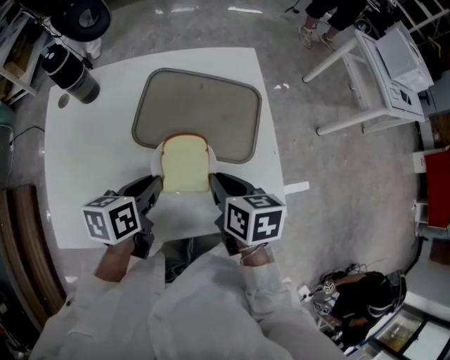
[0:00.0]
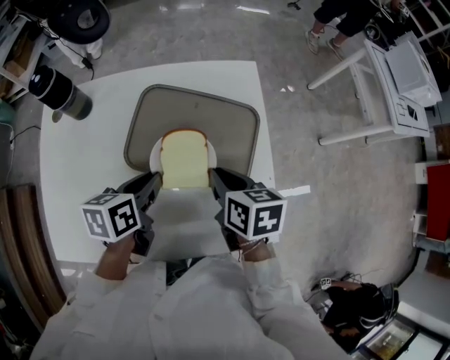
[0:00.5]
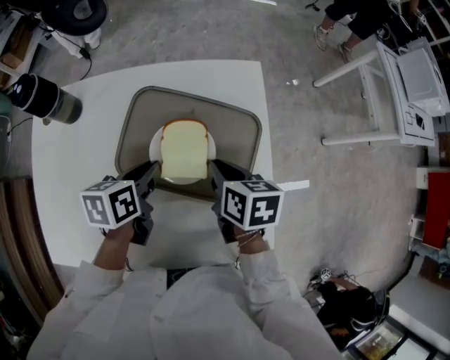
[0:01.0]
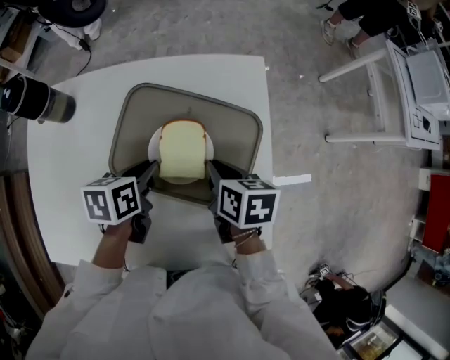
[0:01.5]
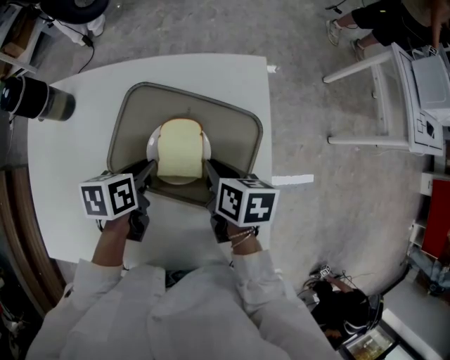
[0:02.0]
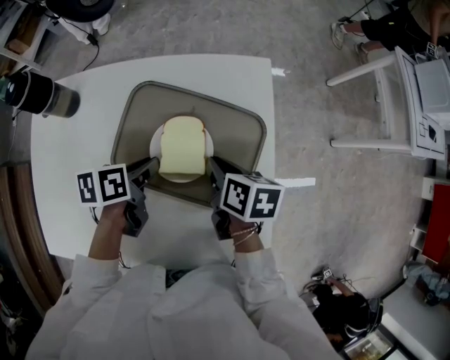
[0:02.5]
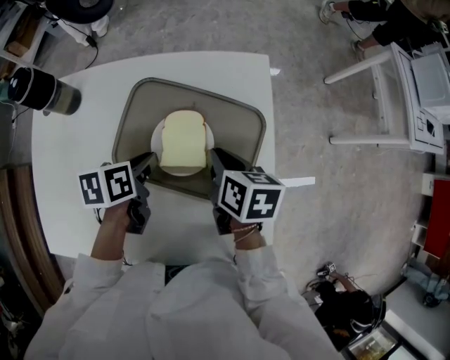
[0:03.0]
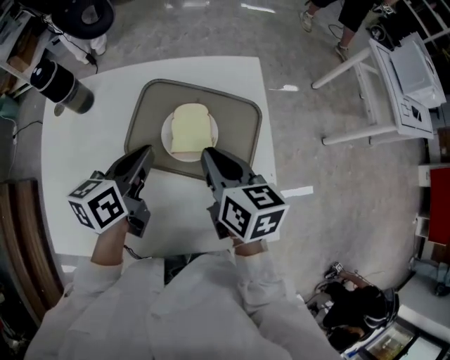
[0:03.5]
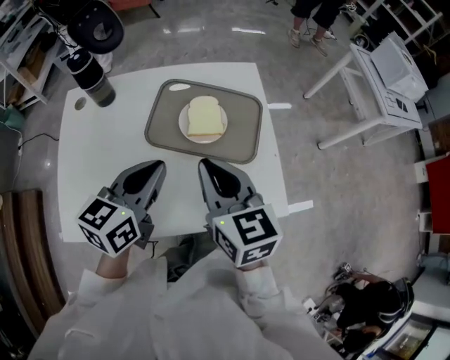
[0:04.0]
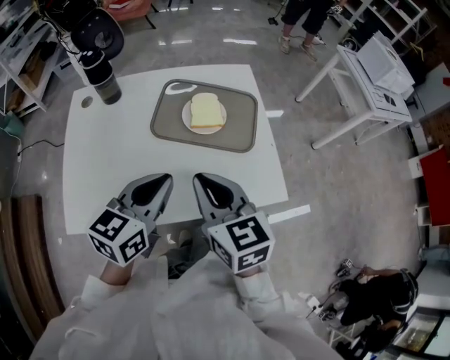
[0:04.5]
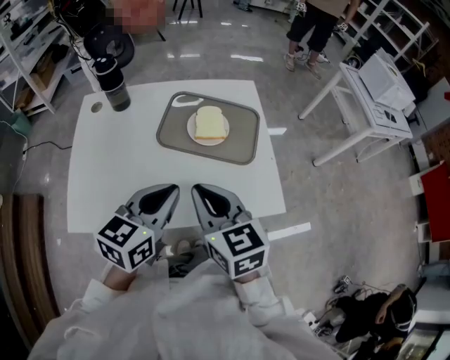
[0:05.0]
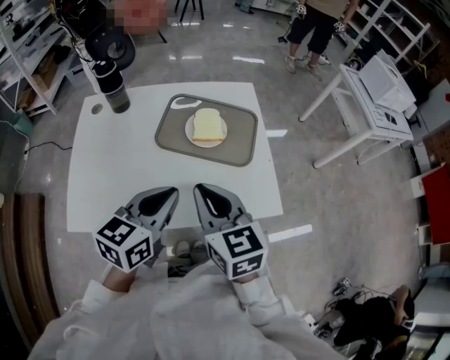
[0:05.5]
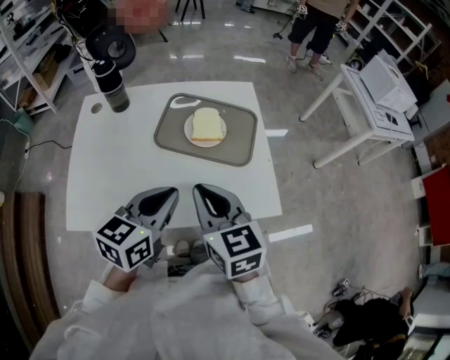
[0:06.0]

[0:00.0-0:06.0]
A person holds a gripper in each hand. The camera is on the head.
0:00.0 to 0:02.0: The grippers both shift forward and downward by roughly 20 cm.
0:02.0 to 0:04.0: The left gripper heads upward and backward, covering about 30 cm, and points its fingers approximately 30 degrees further upward; the right gripper moves upward, backward and to the left, some 30 cm, and swivels roughly 50 degrees.
0:04.0 to 0:06.0: The grippers both shift backward by roughly 10 cm.

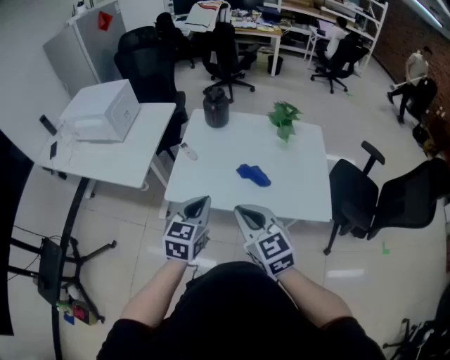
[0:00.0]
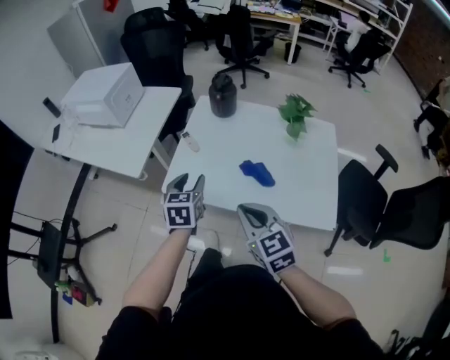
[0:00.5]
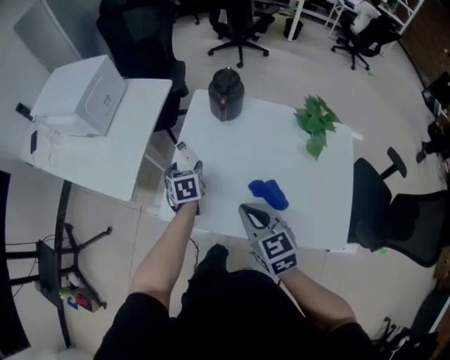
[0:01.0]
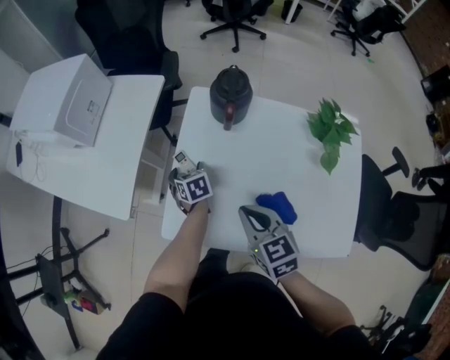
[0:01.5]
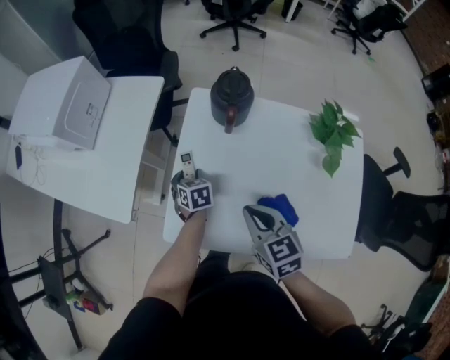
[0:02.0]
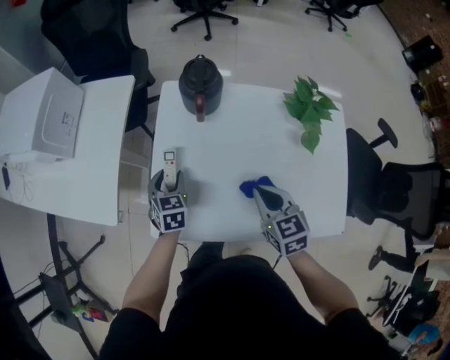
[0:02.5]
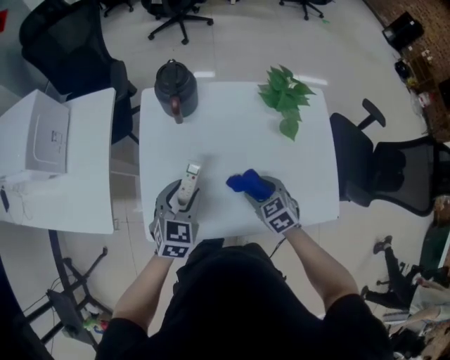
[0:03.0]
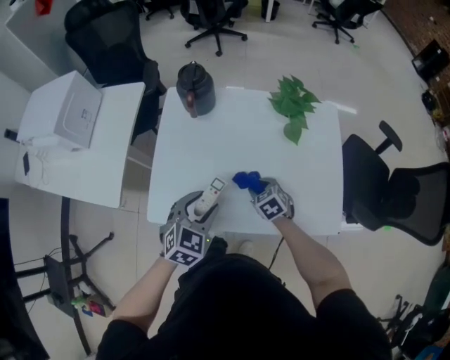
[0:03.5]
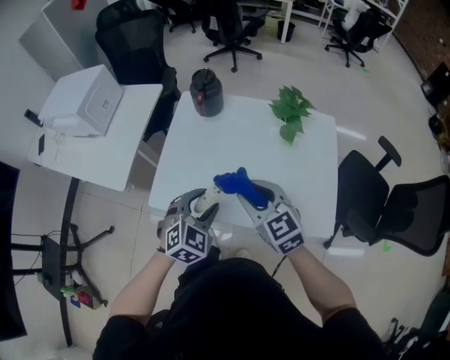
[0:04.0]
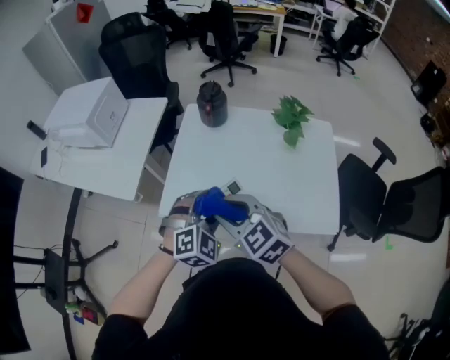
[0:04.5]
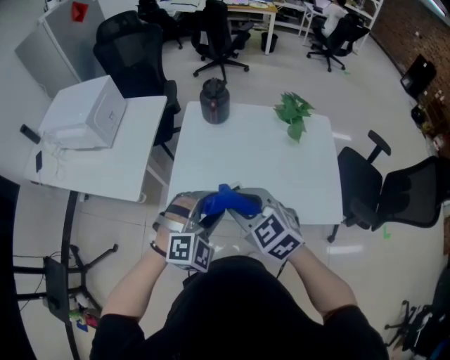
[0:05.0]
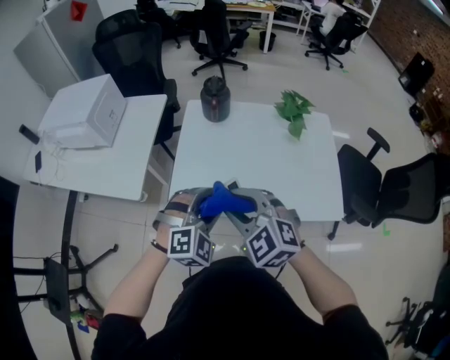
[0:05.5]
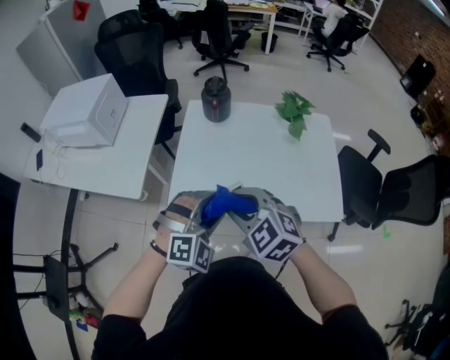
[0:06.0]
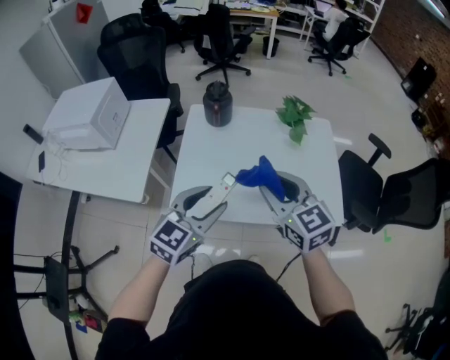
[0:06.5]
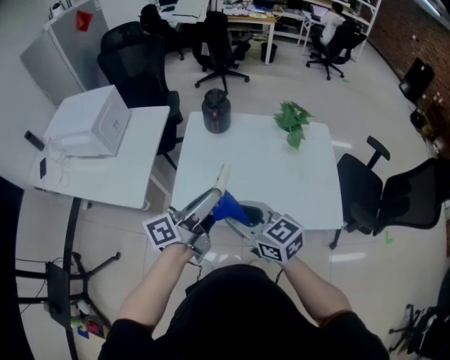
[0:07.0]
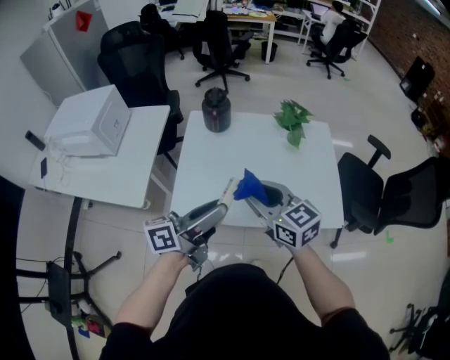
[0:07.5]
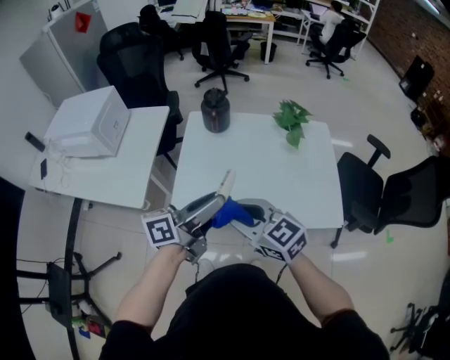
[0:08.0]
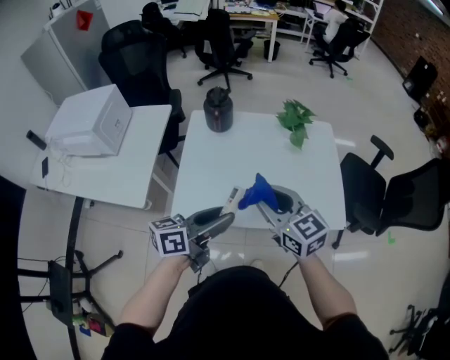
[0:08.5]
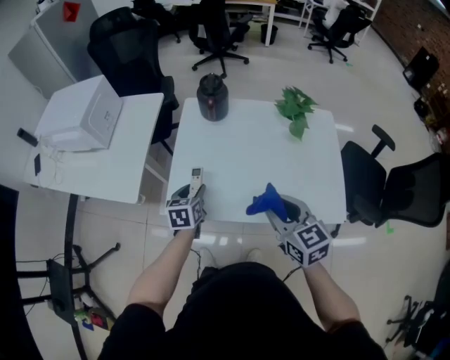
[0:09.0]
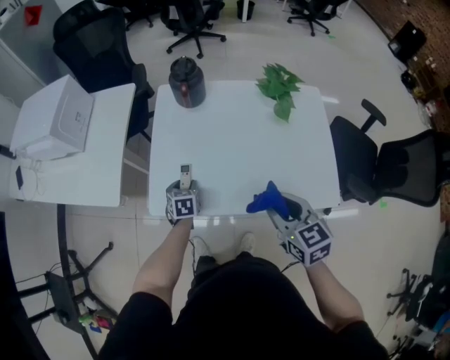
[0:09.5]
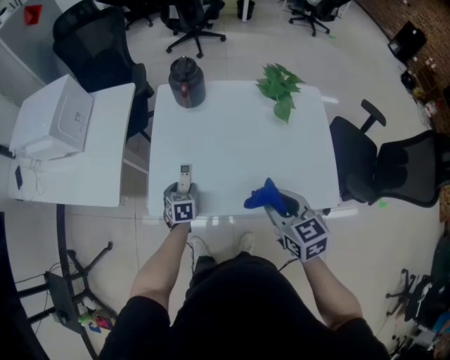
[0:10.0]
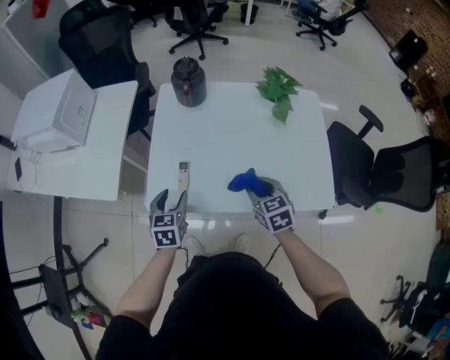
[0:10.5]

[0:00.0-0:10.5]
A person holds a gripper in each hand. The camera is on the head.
0:00.0 to 0:02.0: The left gripper is displaced forward and downward by approximately 50 cm, tips its fingers downward by roughly 30 degrees, and opens its fingers. Meanwhile the right gripper shifts some 30 cm forward and downward, and changes its angle by approximately 20 degrees.
0:02.0 to 0:04.0: The right gripper travels downward and back again, about 15 cm each way, and opens; the left gripper ends up approximately 40 cm from where it was, and twists approximately 50 degrees clockwise, seen from behind.
0:04.0 to 0:06.5: The right gripper is displaced upward by about 10 cm, and goes to the left and returns, approximately 15 cm each way, while the left gripper is displaced upward and to the left by approximately 15 cm, and turns by some 30 degrees.
0:06.5 to 0:08.5: The left gripper rolls counterclockwise, seen from behind, by some 50 degrees, while the right gripper goes left and right, about 10 cm each way, reversing 3 times.
0:08.5 to 0:10.5: The left gripper travels downward, to the left and forward by some 25 cm, and angles its fingers downward, by approximately 40 degrees; the right gripper moves downward, roughly 20 cm, and changes its angle by some 30 degrees.

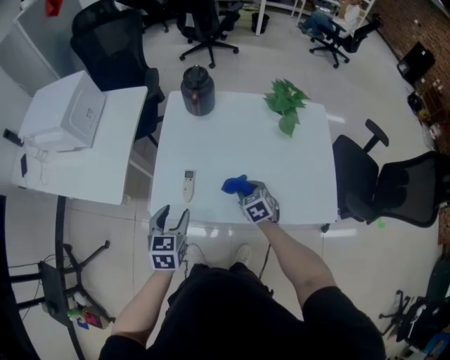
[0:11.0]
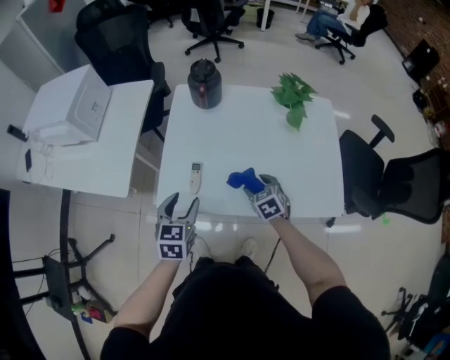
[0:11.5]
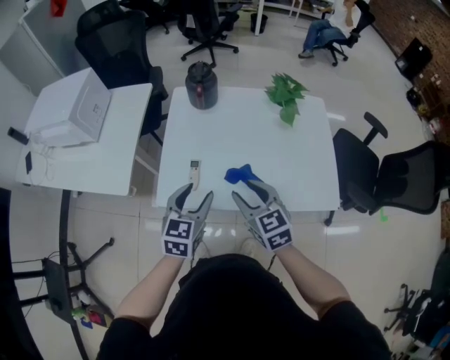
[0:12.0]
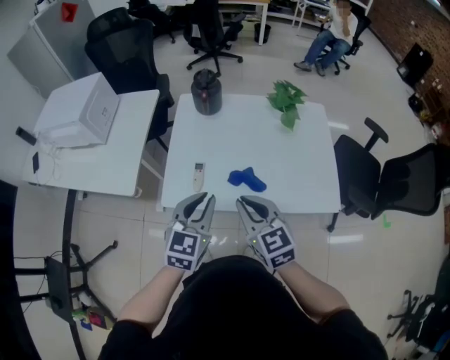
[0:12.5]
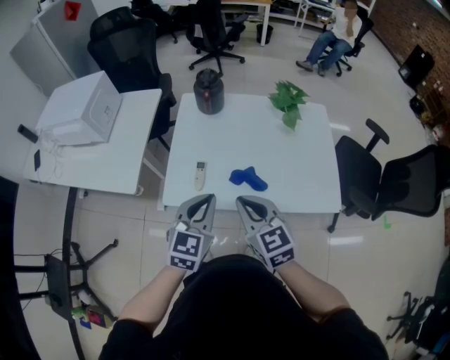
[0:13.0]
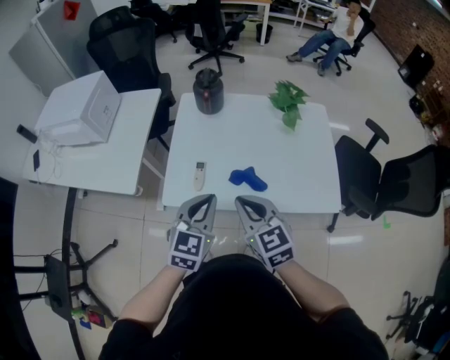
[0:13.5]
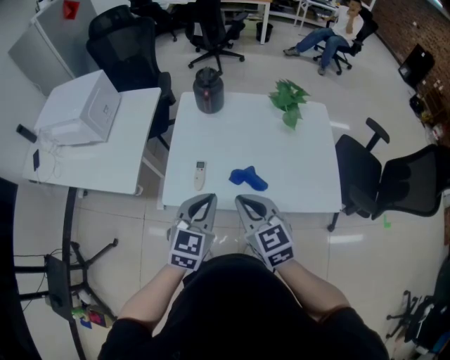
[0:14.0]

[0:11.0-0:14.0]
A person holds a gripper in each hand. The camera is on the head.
0:11.0 to 0:12.5: The right gripper heads upward and backward, covering approximately 30 cm, turns by some 30 degrees, and closes its fingers. The left gripper is displaced upward and to the right by approximately 15 cm, turns by approximately 20 degrees, and closes.
0:12.5 to 0:14.0: The two grippers keep their place.

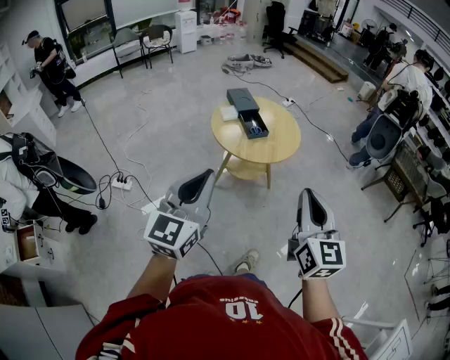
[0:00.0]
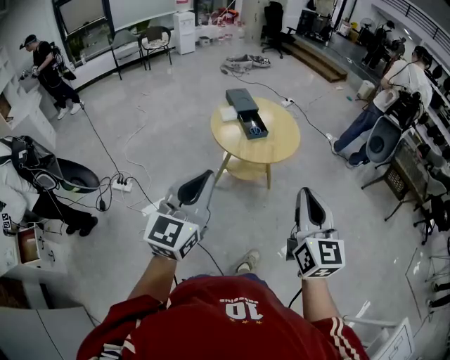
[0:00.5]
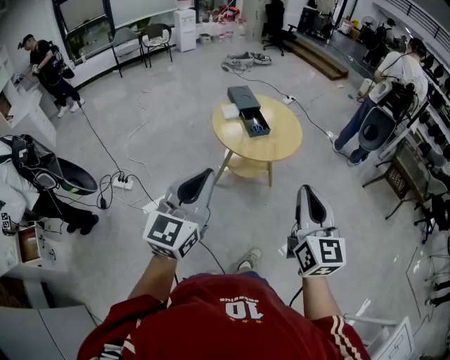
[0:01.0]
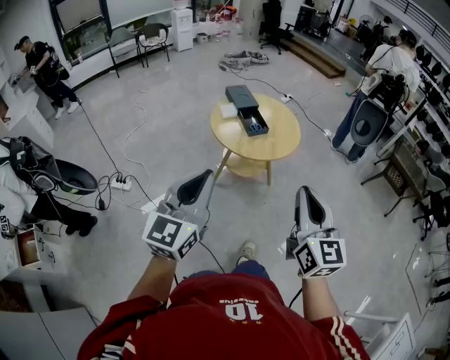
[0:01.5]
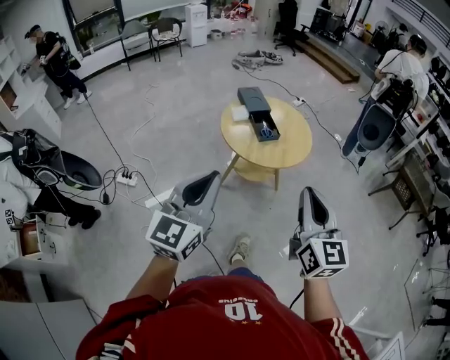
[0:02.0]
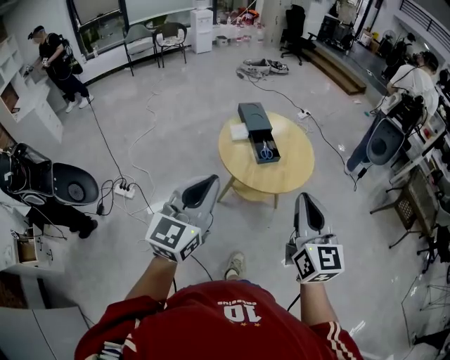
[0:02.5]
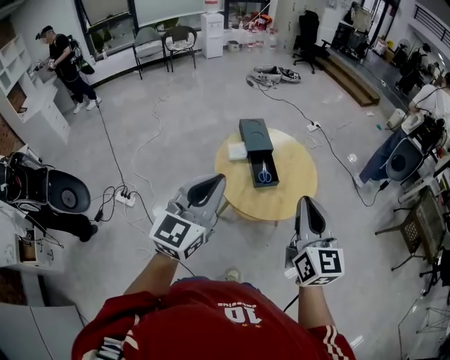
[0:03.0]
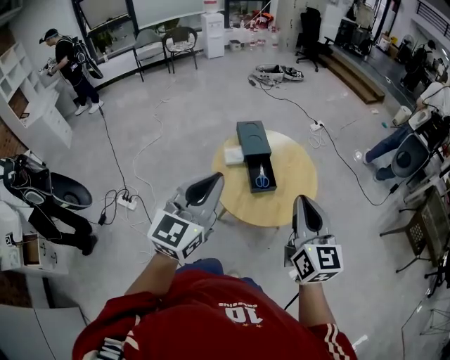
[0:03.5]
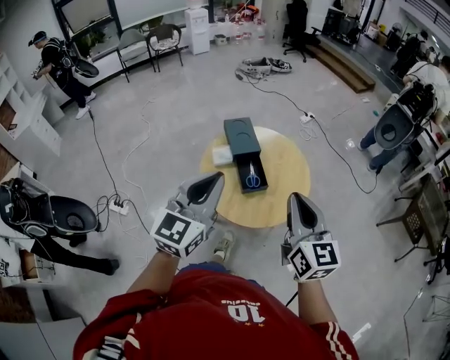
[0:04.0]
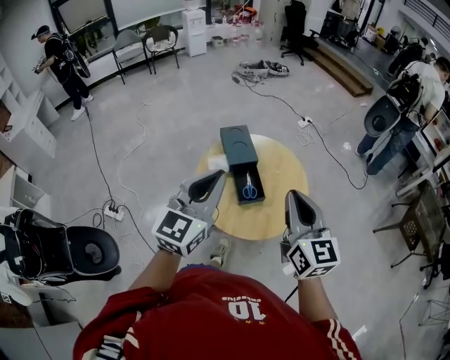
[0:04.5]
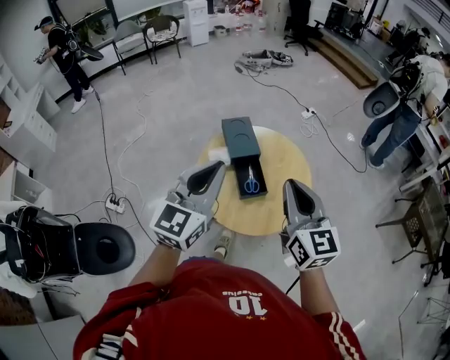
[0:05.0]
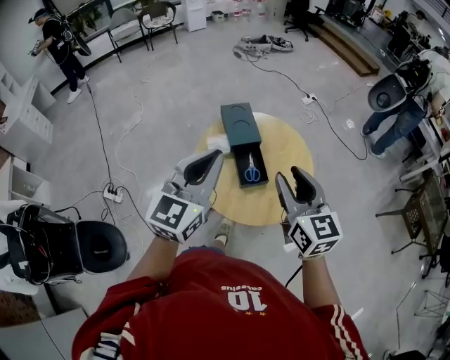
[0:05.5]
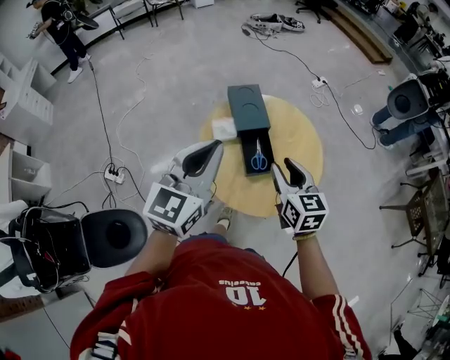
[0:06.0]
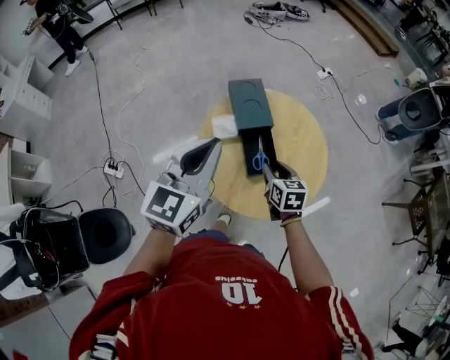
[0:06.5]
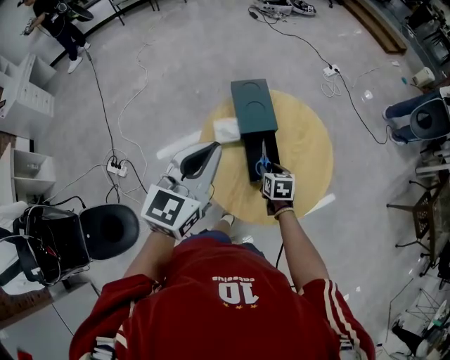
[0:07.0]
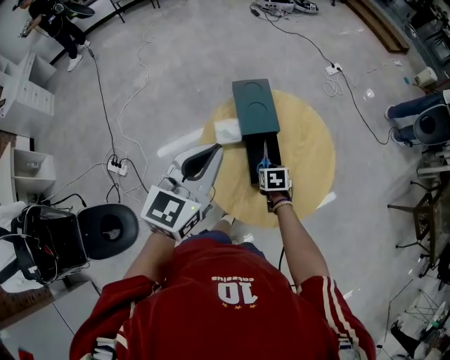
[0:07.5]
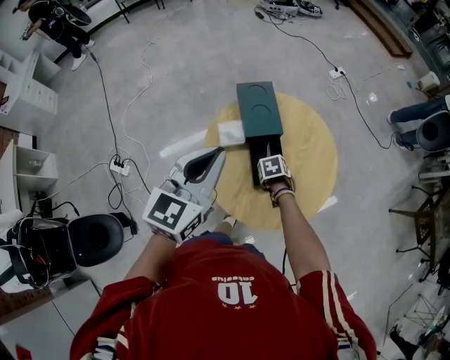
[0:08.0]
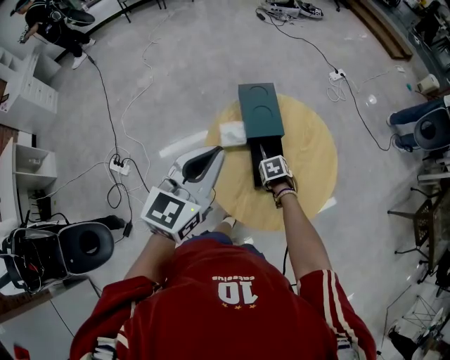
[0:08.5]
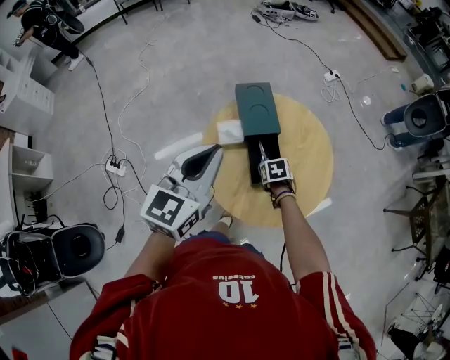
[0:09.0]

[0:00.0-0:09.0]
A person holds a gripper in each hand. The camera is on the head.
0:00.0 to 0:02.0: The right gripper shifts approximately 5 cm forward.
0:02.0 to 0:04.5: The two grippers go about 35 cm forward.
0:04.5 to 0:07.0: The right gripper is displaced downward and forward by about 40 cm, tips its fingers downward by some 50 degrees, and opens up. The left gripper moves forward and downward, roughly 15 cm.
0:07.0 to 0:09.0: The right gripper changes its angle by about 20 degrees.
